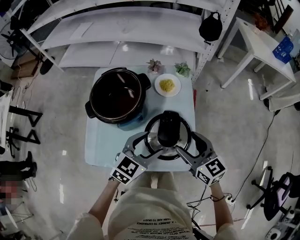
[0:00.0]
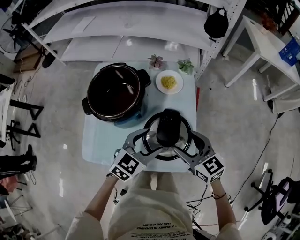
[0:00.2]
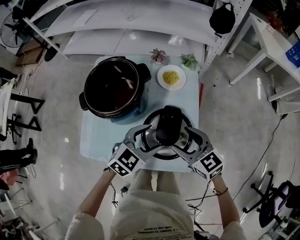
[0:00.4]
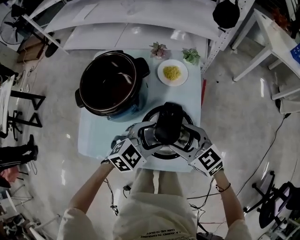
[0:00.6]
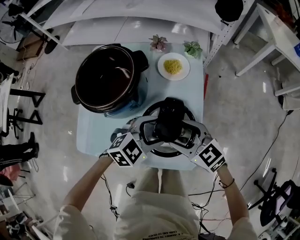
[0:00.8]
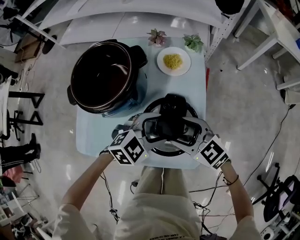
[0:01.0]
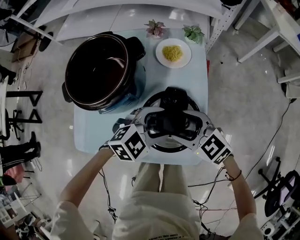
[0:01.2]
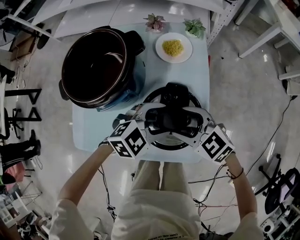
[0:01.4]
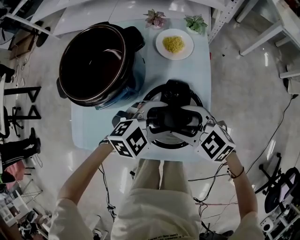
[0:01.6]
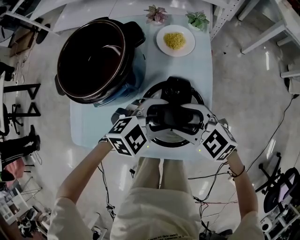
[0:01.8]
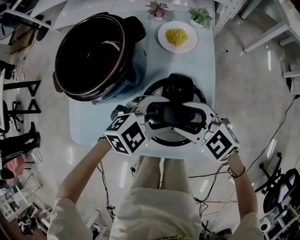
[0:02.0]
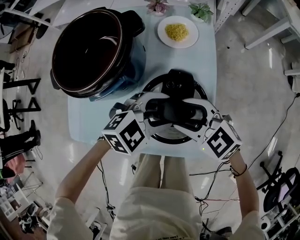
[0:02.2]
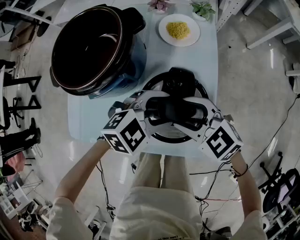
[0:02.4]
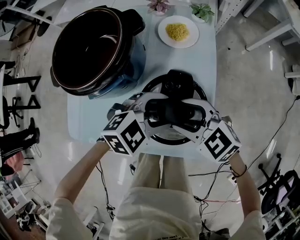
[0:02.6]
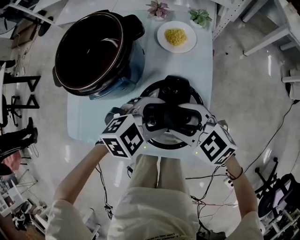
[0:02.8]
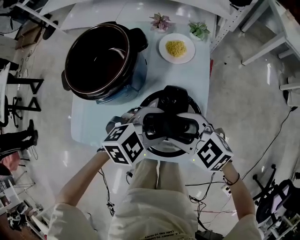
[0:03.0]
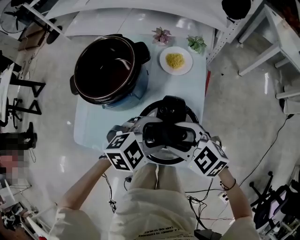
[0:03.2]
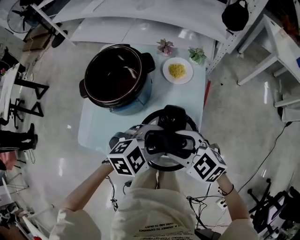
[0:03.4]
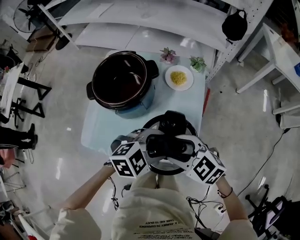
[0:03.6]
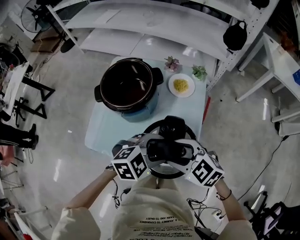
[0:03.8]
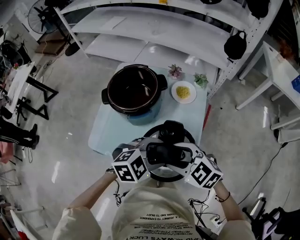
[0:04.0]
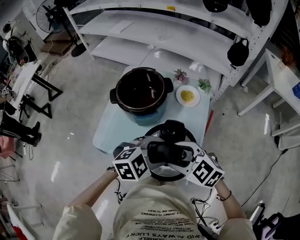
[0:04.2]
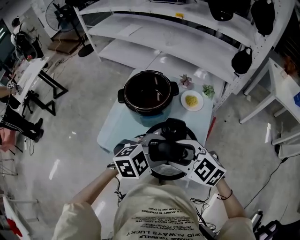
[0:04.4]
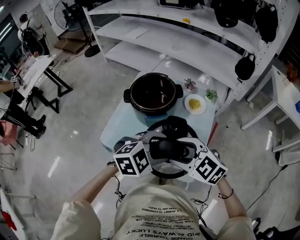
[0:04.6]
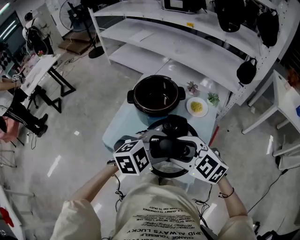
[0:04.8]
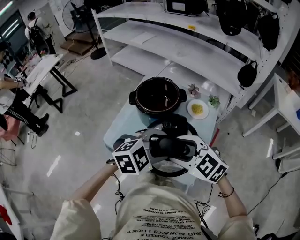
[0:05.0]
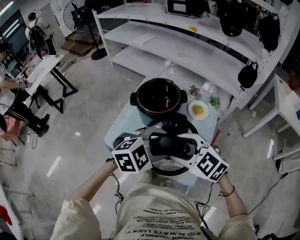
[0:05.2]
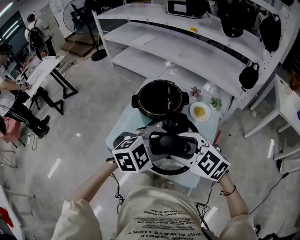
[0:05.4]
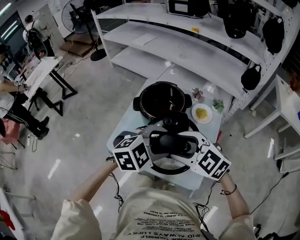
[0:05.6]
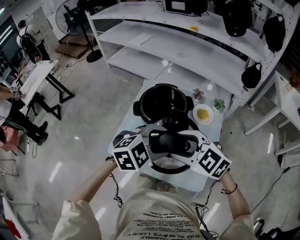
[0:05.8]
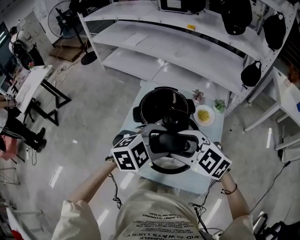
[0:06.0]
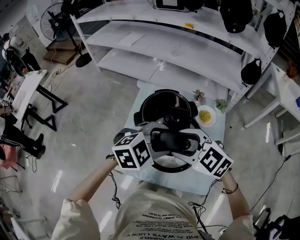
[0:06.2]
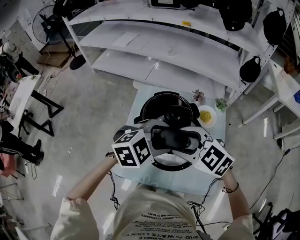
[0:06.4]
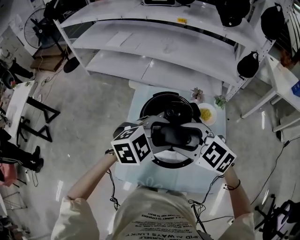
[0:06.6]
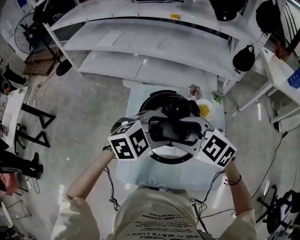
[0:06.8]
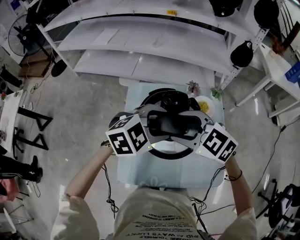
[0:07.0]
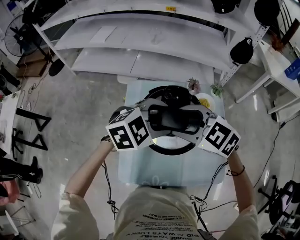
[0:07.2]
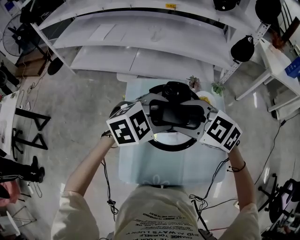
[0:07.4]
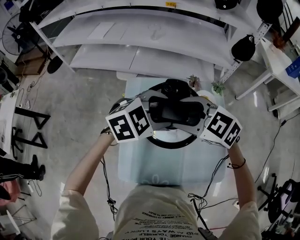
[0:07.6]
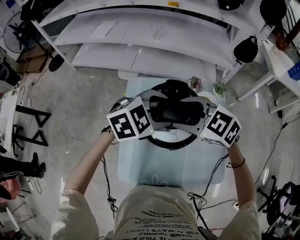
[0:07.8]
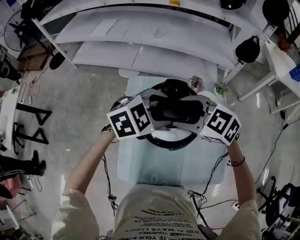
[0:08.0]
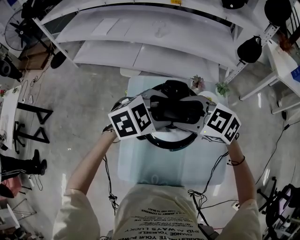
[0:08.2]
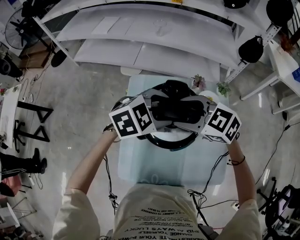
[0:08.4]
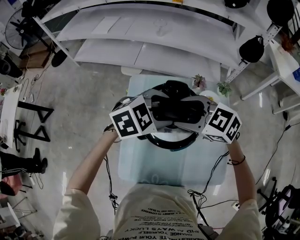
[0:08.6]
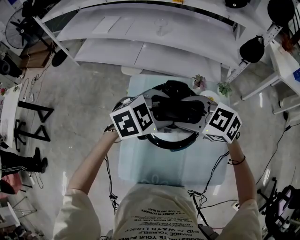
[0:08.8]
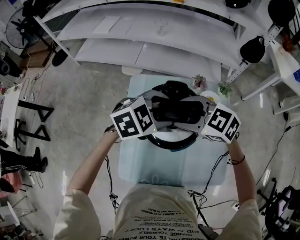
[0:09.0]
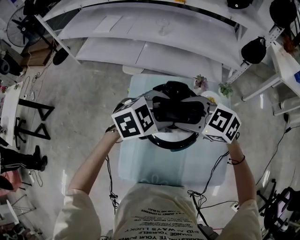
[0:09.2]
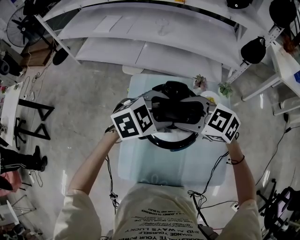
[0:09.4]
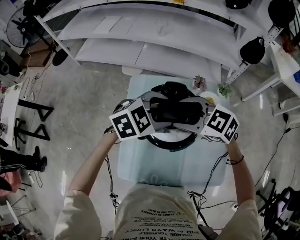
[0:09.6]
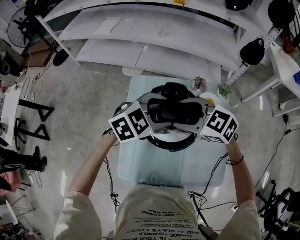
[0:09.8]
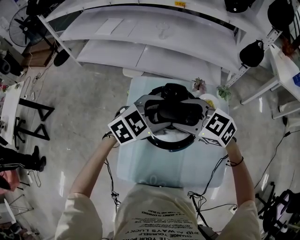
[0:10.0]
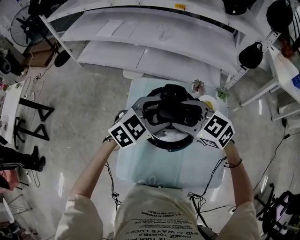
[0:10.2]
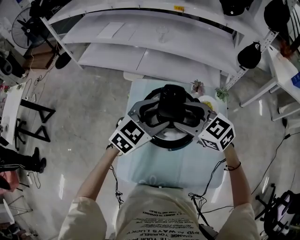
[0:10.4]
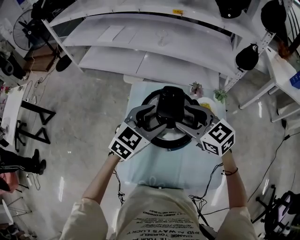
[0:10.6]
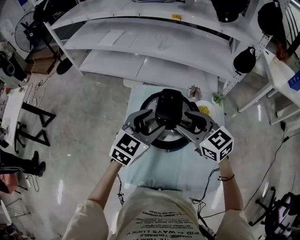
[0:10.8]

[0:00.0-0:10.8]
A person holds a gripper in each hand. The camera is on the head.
0:00.0 to 0:01.6: Both grippers move downward, approximately 10 cm. The left gripper rotates approximately 30 degrees; the right gripper changes its angle by approximately 40 degrees.
0:01.6 to 0:03.0: There are only small adjustments of the grippers.
0:03.0 to 0:04.6: The grippers both shift upward by roughly 15 cm.
0:04.6 to 0:06.2: Both grippers move forward and to the left, approximately 15 cm.
0:06.2 to 0:07.8: The left gripper ends up approximately 15 cm from where it was; the right gripper ends up some 15 cm from where it was.
0:07.8 to 0:09.2: The grippers stay close to where they were, moving slightly.
0:09.2 to 0:10.8: The right gripper rotates roughly 30 degrees. The left gripper turns by approximately 40 degrees.

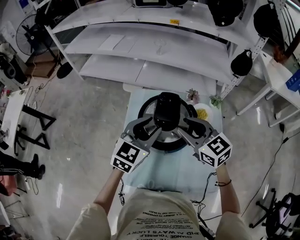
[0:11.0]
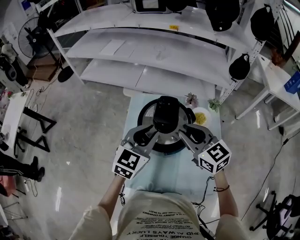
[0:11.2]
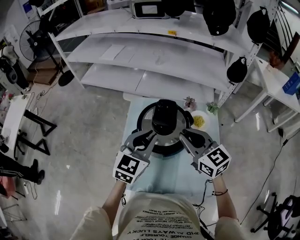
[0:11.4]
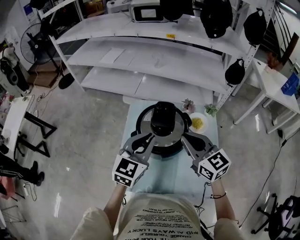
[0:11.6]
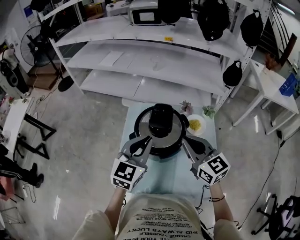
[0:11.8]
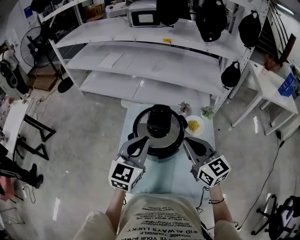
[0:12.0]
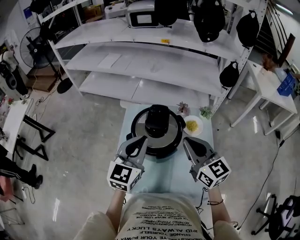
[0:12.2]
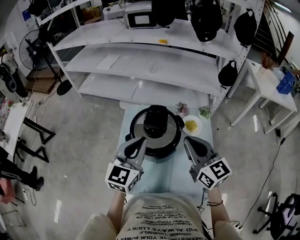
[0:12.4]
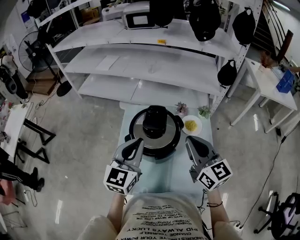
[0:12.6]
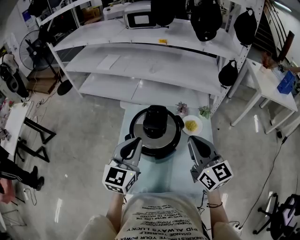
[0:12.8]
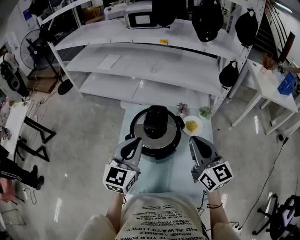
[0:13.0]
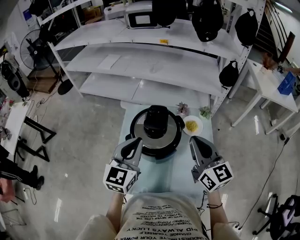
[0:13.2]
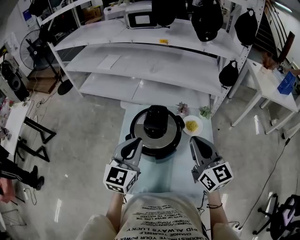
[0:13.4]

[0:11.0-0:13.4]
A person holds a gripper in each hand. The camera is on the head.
0:11.0 to 0:12.2: The right gripper shifts approximately 10 cm backward, to the right and upward, and closes up; the left gripper changes place by approximately 5 cm, and closes its fingers.
0:12.2 to 0:13.4: There are only small adjustments of the grippers.

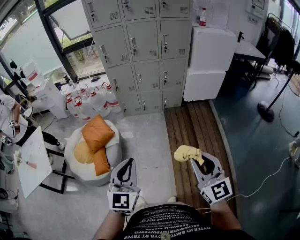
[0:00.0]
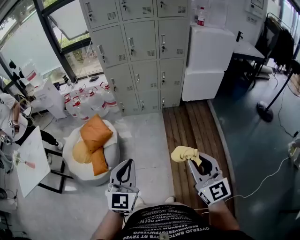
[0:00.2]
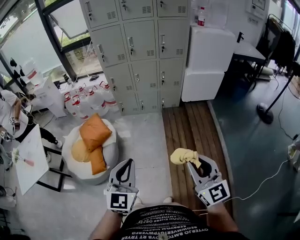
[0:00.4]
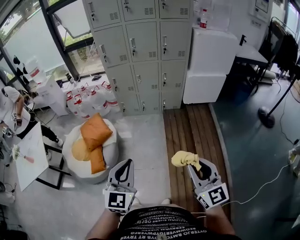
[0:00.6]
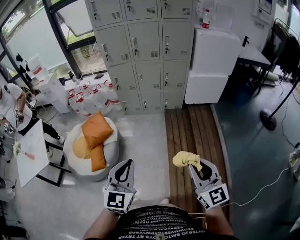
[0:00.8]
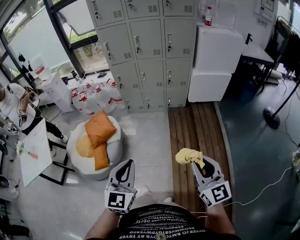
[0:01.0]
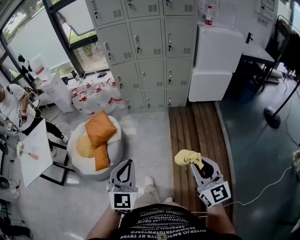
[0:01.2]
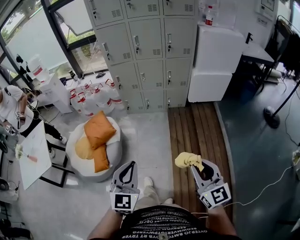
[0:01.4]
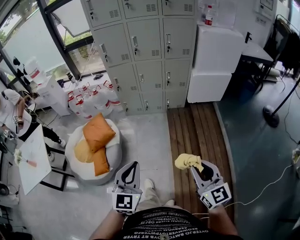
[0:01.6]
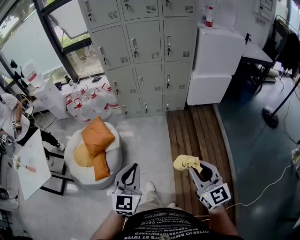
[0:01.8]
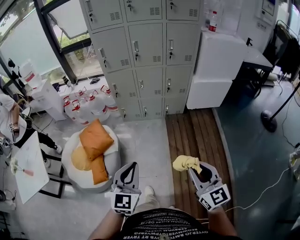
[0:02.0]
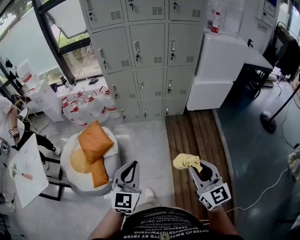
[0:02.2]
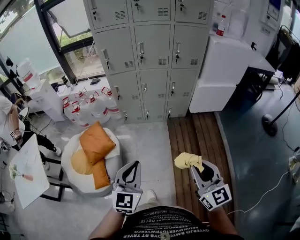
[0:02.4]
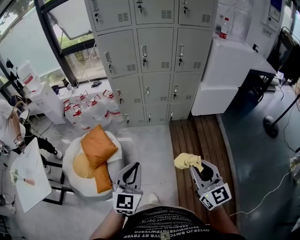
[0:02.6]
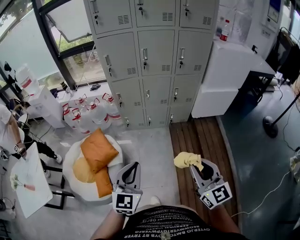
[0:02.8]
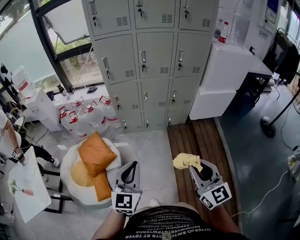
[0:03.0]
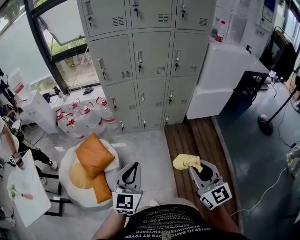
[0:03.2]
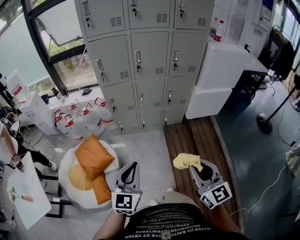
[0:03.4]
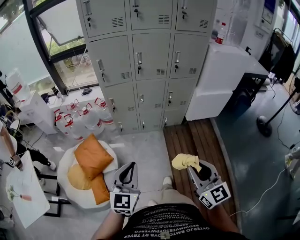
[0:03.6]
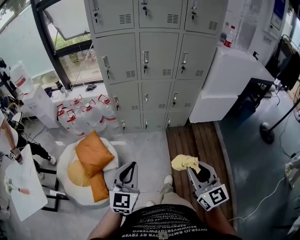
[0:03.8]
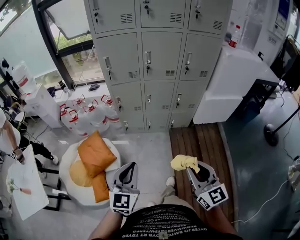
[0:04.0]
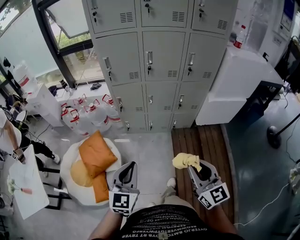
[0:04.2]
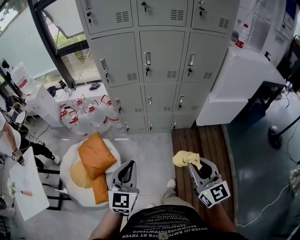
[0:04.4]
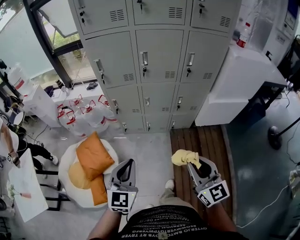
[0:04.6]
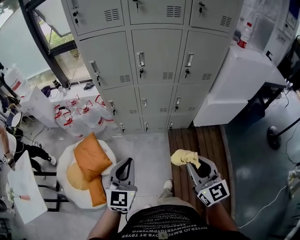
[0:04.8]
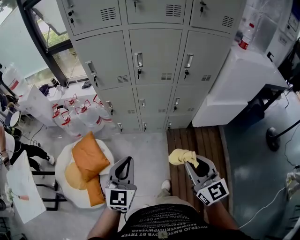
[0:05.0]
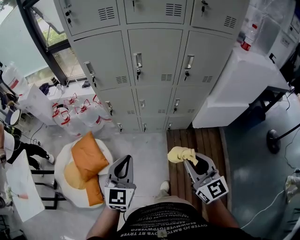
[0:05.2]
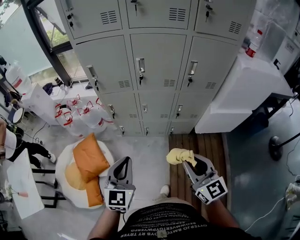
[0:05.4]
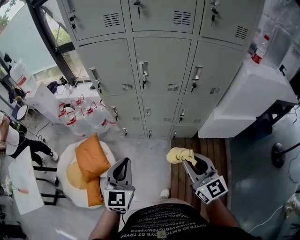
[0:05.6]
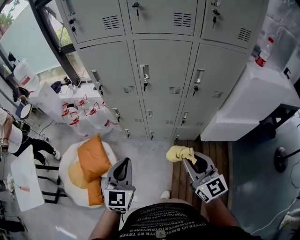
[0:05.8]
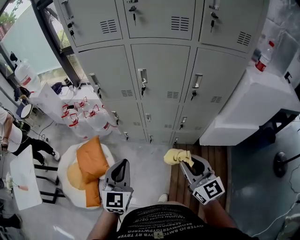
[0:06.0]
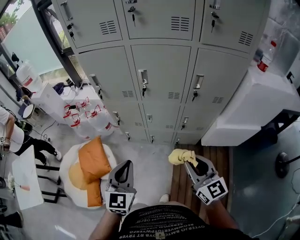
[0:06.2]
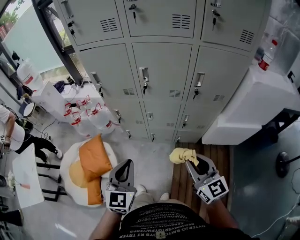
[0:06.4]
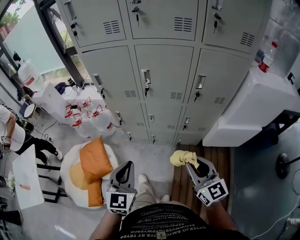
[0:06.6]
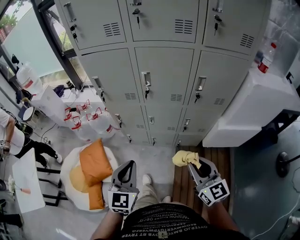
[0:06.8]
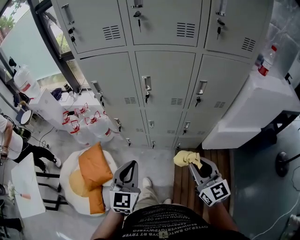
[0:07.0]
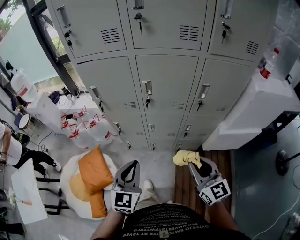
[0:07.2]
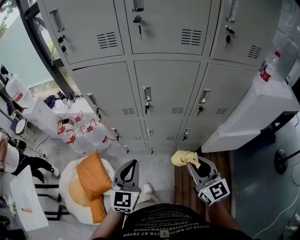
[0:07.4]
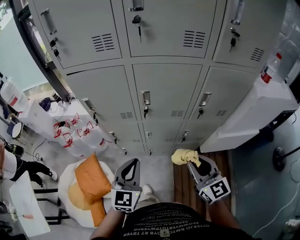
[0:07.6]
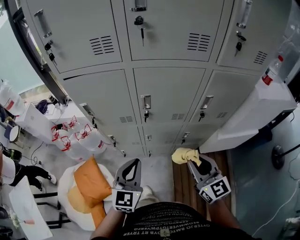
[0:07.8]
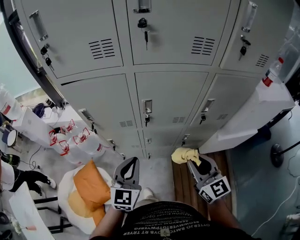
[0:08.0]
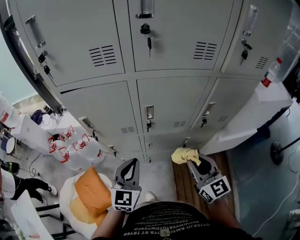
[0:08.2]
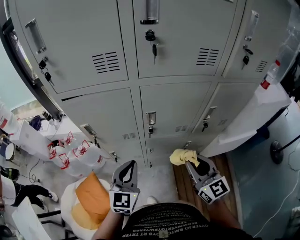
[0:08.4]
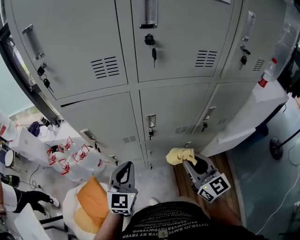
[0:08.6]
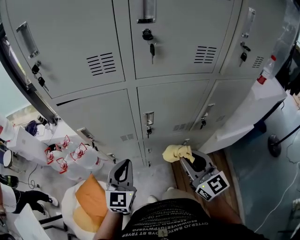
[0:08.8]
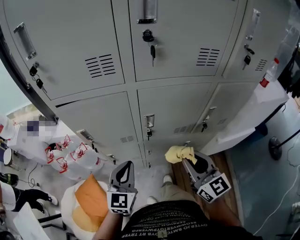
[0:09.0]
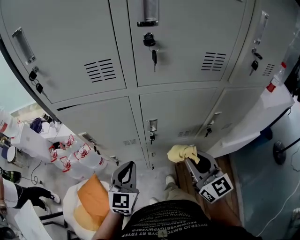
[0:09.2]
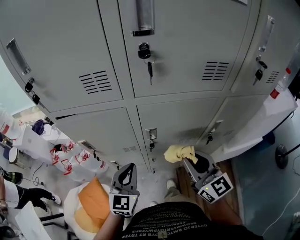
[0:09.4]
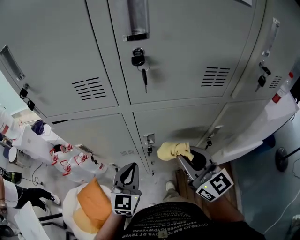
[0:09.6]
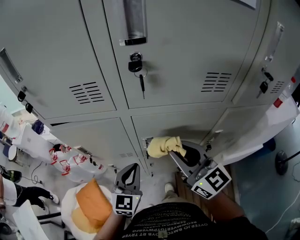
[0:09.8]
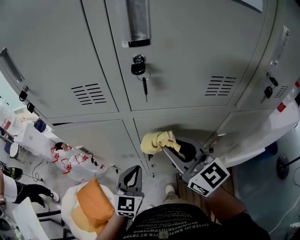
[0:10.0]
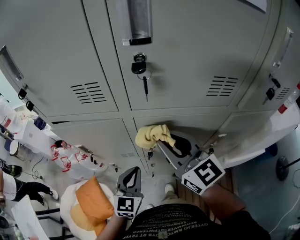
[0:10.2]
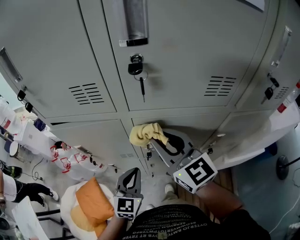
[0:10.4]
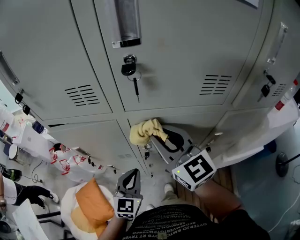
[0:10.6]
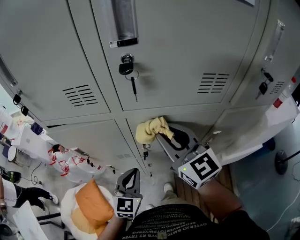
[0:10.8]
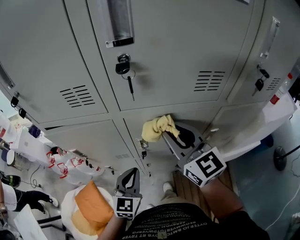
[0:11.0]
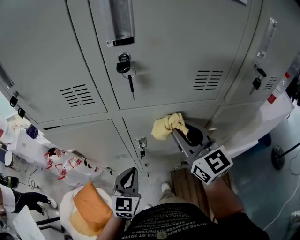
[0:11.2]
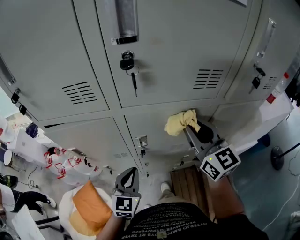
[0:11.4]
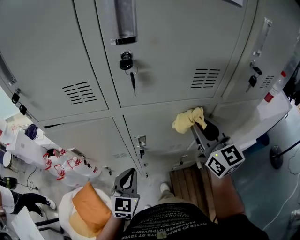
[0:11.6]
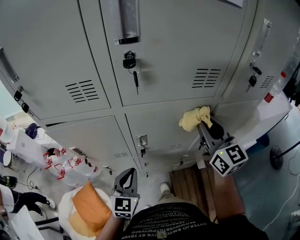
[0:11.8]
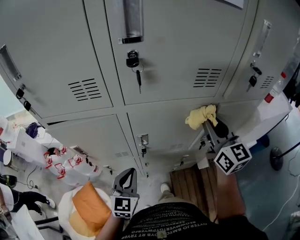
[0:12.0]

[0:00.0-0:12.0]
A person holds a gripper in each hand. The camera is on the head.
0:00.0 to 0:01.6: The left gripper moves to the right, approximately 5 cm. Meanwhile the right gripper ends up about 5 cm from where it was.
0:01.6 to 0:03.0: Both grippers travel together forward and to the left, some 25 cm.
0:03.0 to 0:04.4: The two grippers go about 15 cm forward.
0:04.4 to 0:06.0: Both grippers travel together forward and to the right, about 20 cm.
0:06.0 to 0:07.6: The grippers both shift forward by approximately 15 cm.
0:07.6 to 0:09.0: The two grippers go some 15 cm forward and to the left.
0:09.0 to 0:10.4: The right gripper shifts approximately 20 cm forward and upward, while the left gripper is displaced forward and to the right by about 10 cm.
0:10.4 to 0:12.0: The right gripper goes roughly 20 cm to the right, and changes its angle by some 30 degrees.
